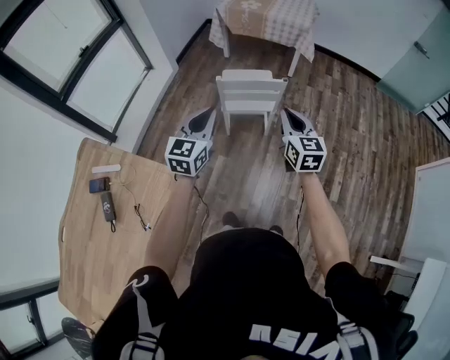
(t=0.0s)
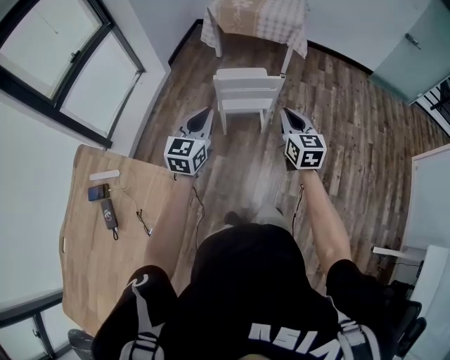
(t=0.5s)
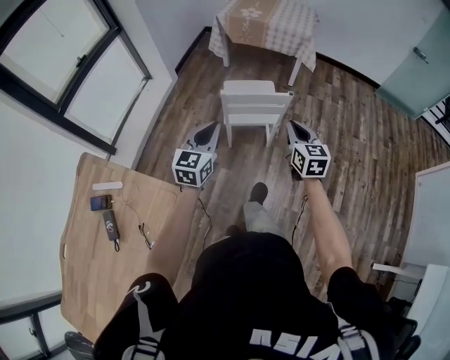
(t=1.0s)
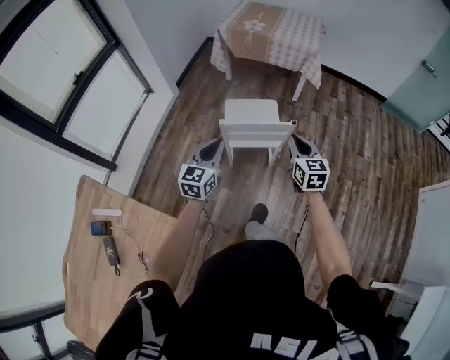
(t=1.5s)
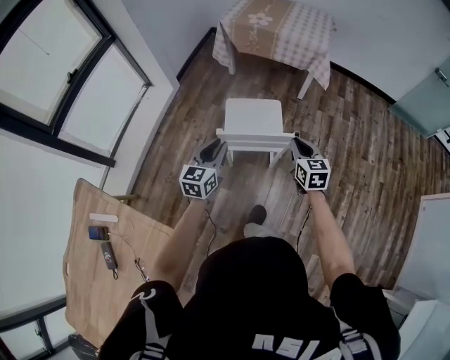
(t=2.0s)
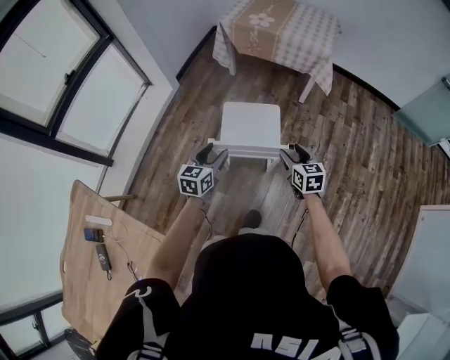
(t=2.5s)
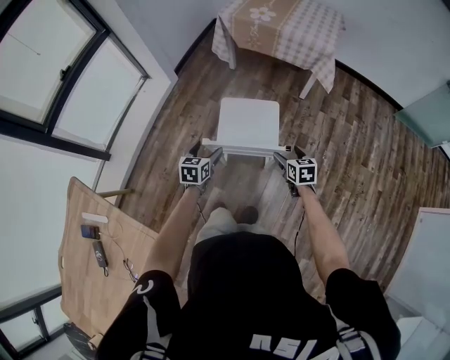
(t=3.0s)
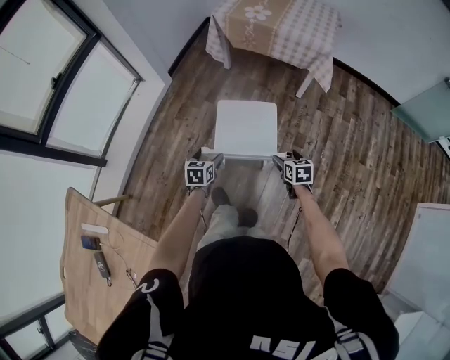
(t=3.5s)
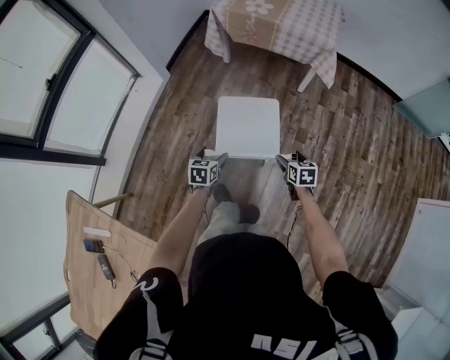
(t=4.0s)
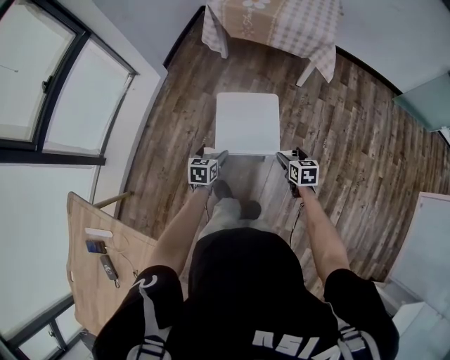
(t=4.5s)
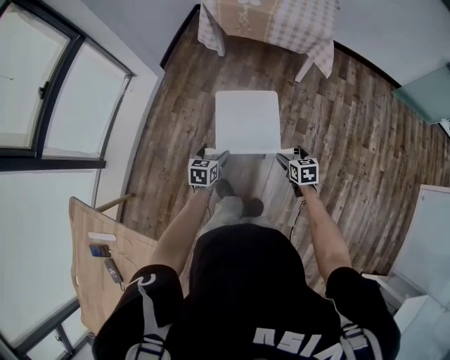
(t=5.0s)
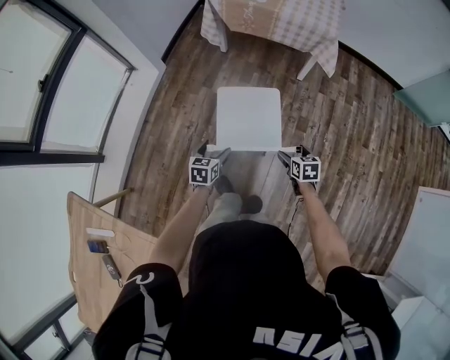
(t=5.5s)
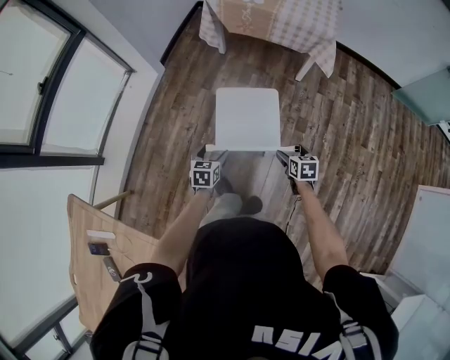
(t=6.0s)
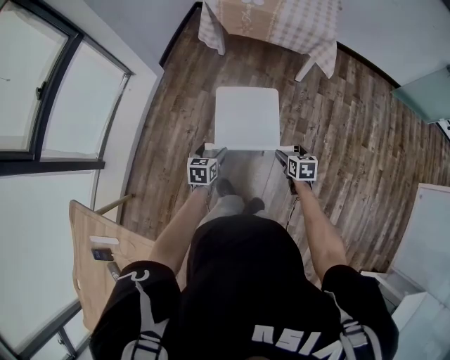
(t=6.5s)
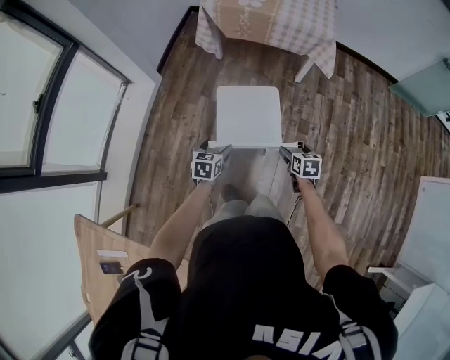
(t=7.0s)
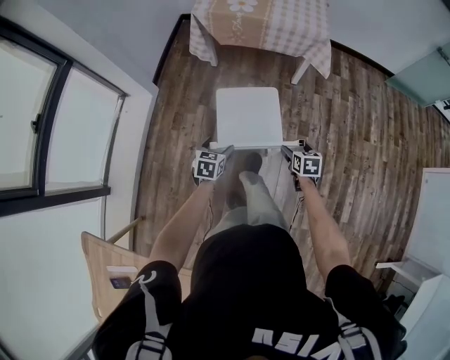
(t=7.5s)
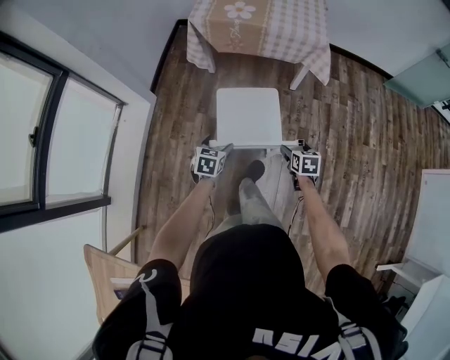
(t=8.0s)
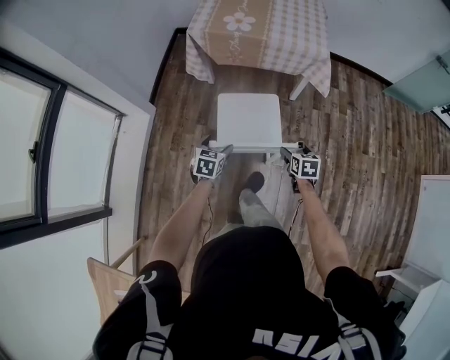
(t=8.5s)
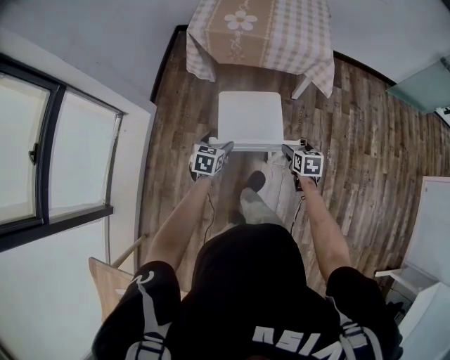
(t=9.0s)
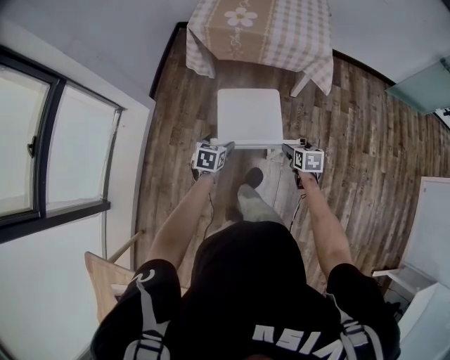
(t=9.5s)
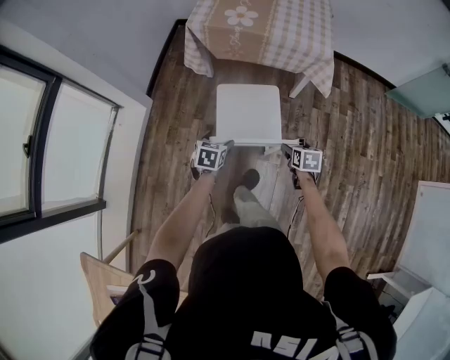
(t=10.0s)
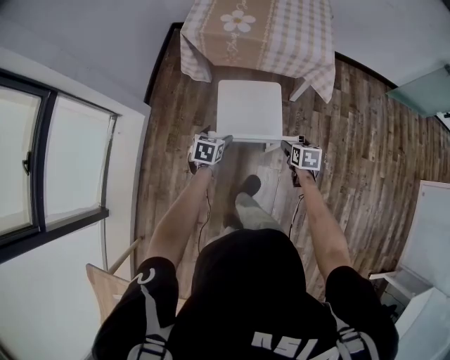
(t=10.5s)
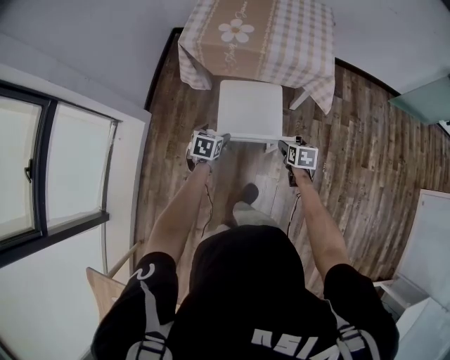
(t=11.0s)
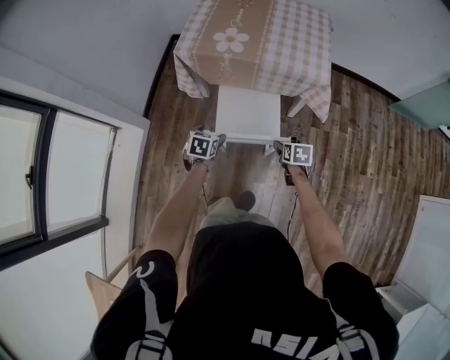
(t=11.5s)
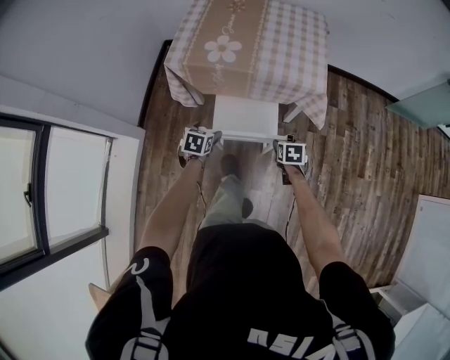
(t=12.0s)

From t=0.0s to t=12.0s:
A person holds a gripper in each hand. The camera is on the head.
From t=0.0s to t=2.0s: The two grippers go approximately 30 cm forward and downward.
From t=2.0s to t=4.0s: The two grippers go roughly 20 cm downward and forward. The right gripper rotates about 30 degrees, and opens, while the left gripper points its fingers roughly 30 degrees further downward, and opens.
From t=4.0s to t=6.0s: The grippers stay close to where they were, moving slightly.
From t=6.0s to t=8.0s: Both grippers travel together forward, roughly 15 cm.
From t=8.0s to t=10.0s: Both grippers move forward, roughly 10 cm.
From t=10.0s to t=12.0s: The two grippers go some 25 cm forward.

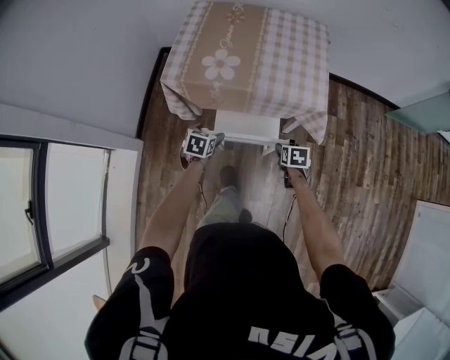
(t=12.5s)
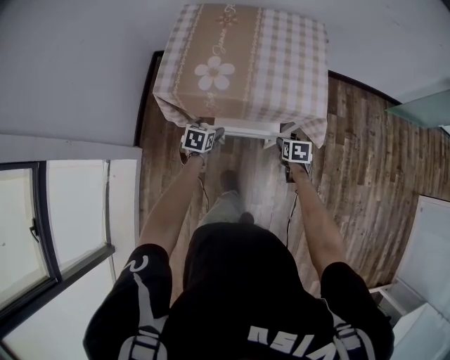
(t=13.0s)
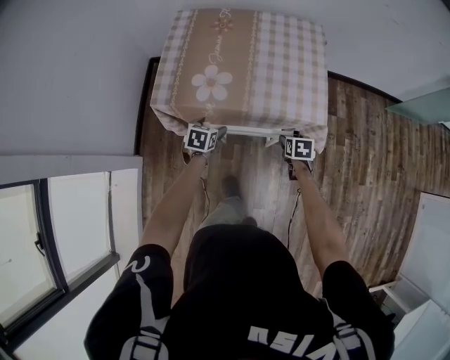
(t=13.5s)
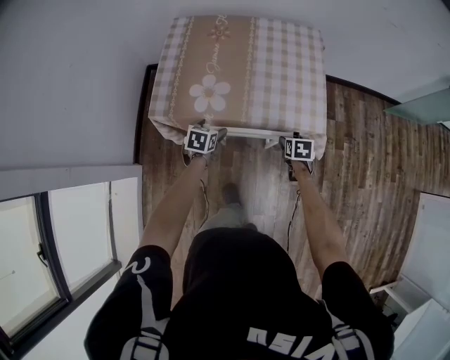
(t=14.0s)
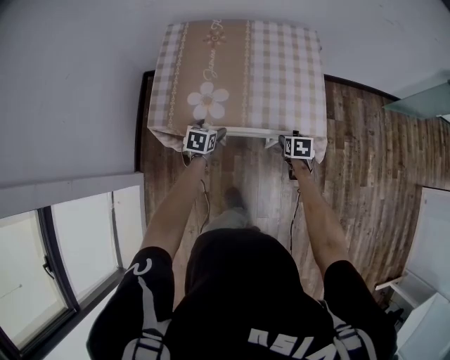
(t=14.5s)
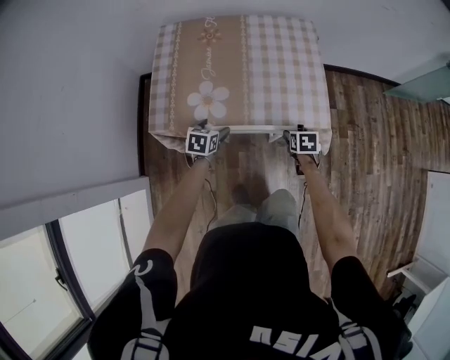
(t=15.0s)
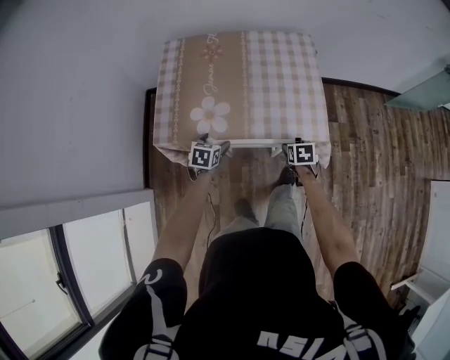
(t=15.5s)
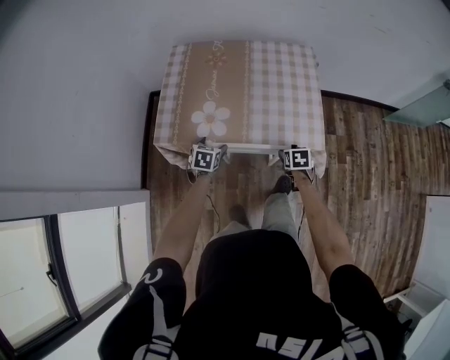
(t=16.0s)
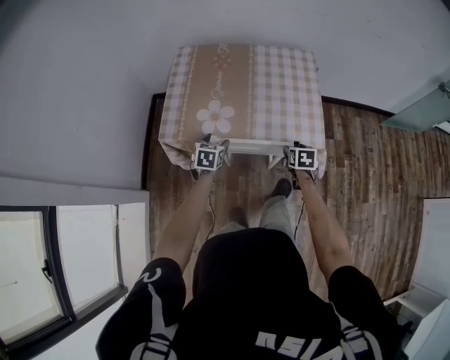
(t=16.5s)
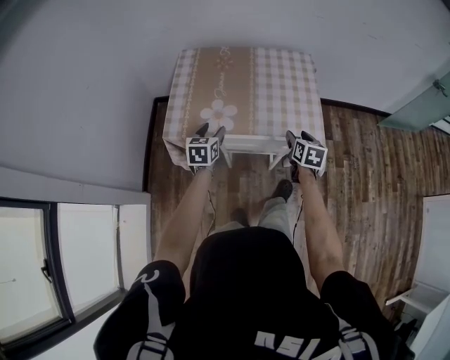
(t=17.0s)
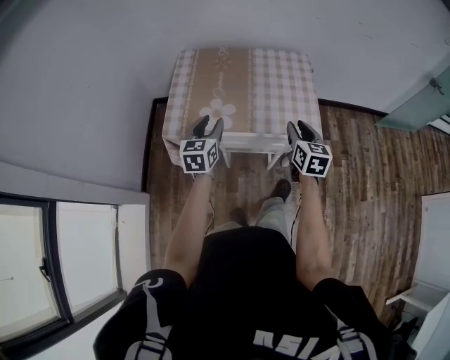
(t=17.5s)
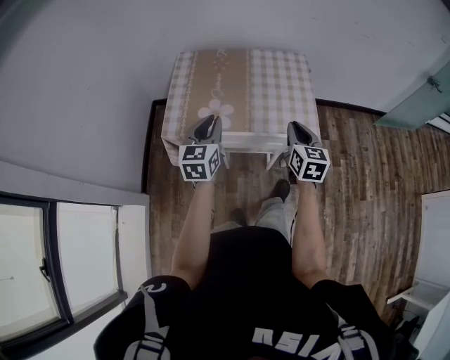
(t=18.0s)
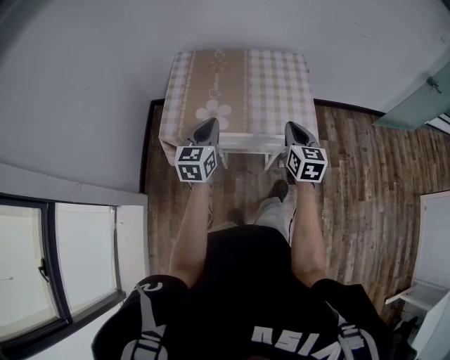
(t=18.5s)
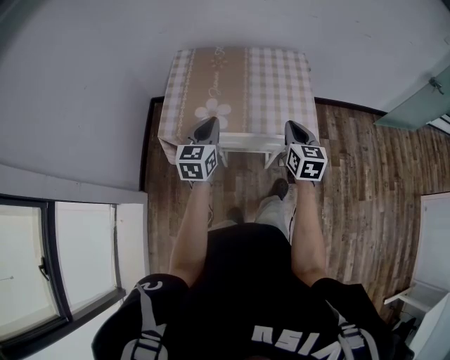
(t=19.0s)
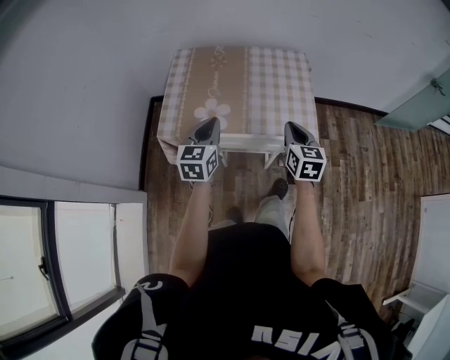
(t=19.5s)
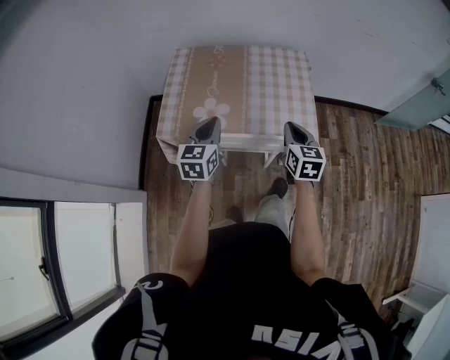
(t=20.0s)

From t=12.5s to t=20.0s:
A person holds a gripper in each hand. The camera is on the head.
From t=12.5s to t=14.5s: Both grippers travel together forward, some 20 cm.
From t=14.5s to t=16.5s: The left gripper moves roughly 5 cm.
From t=16.5s to t=18.0s: Both grippers travel together upward, approximately 25 cm. The right gripper tips its fingers upward by approximately 40 degrees, and closes up. The left gripper tips its fingers upward by about 30 degrees, and closes.
From t=18.0s to t=20.0s: The grippers make only small movements.

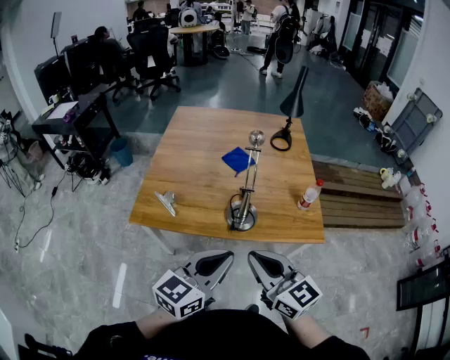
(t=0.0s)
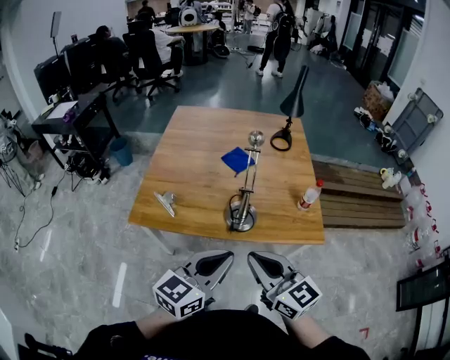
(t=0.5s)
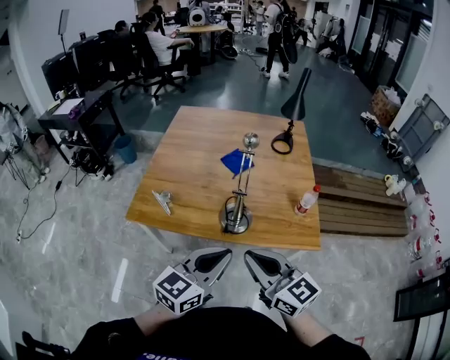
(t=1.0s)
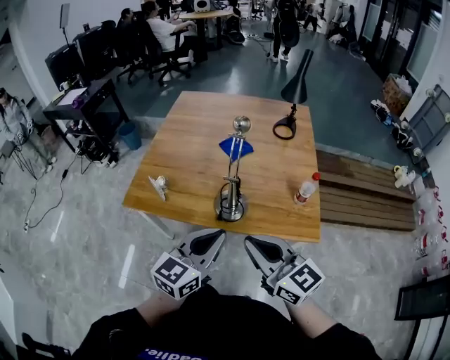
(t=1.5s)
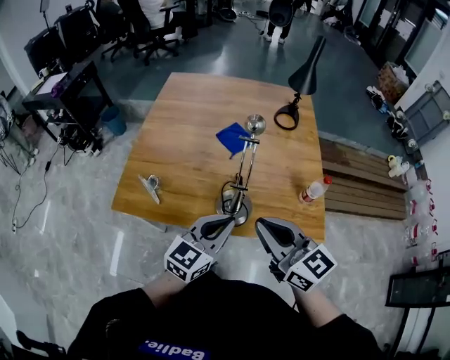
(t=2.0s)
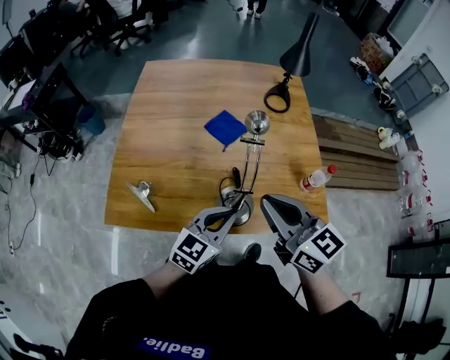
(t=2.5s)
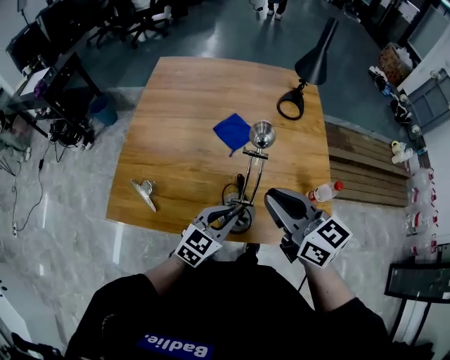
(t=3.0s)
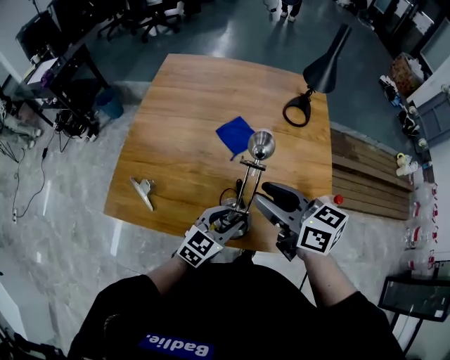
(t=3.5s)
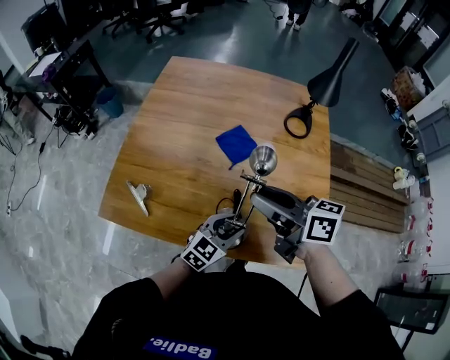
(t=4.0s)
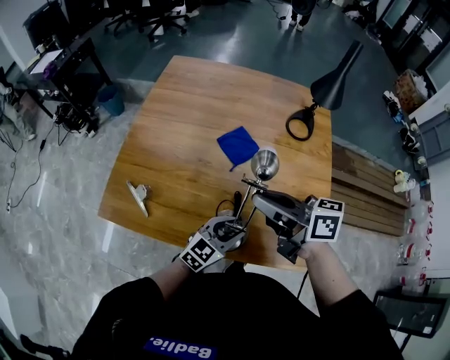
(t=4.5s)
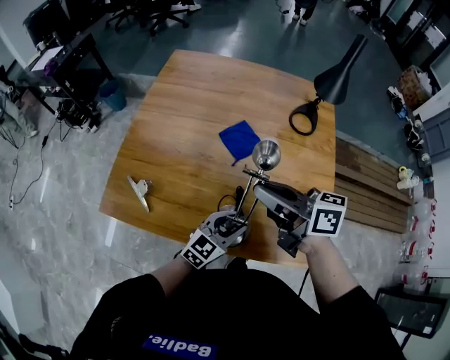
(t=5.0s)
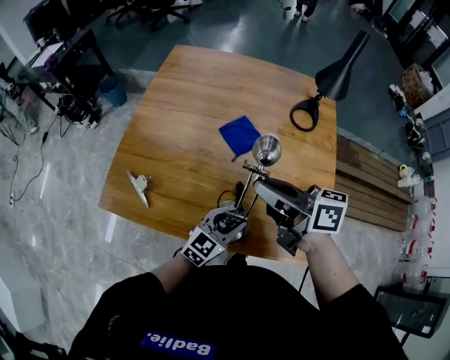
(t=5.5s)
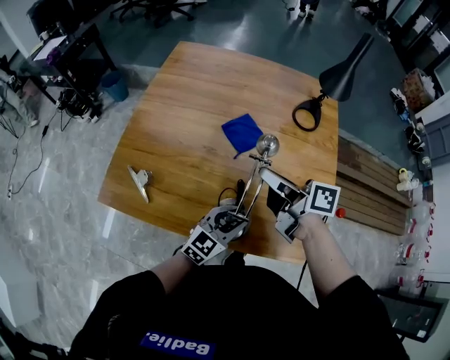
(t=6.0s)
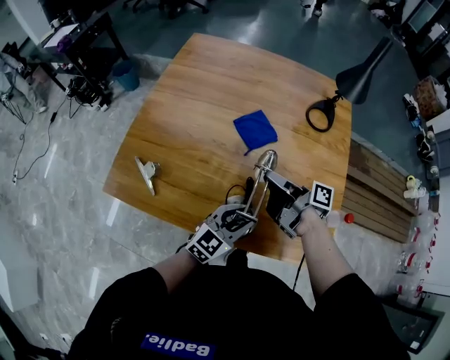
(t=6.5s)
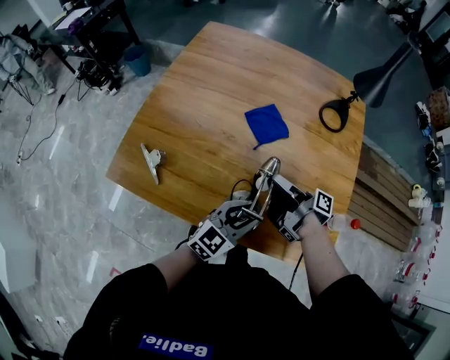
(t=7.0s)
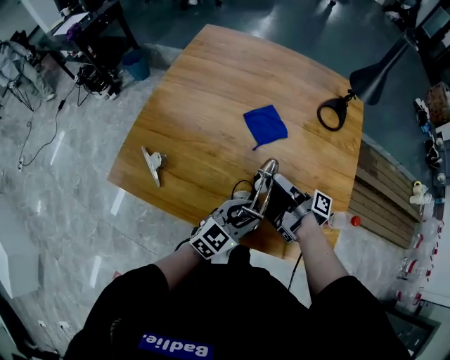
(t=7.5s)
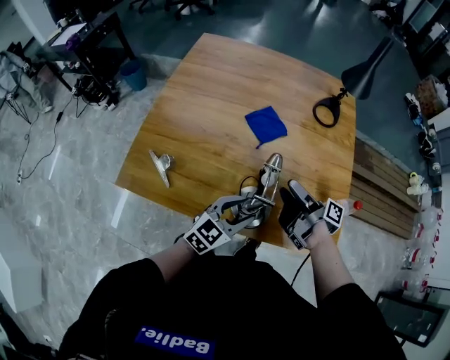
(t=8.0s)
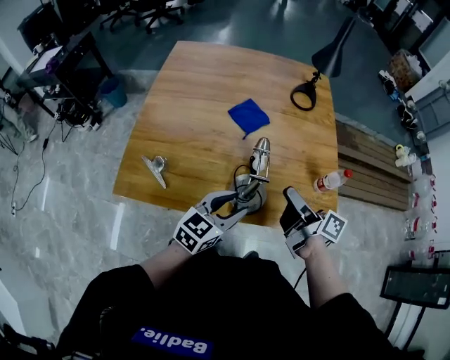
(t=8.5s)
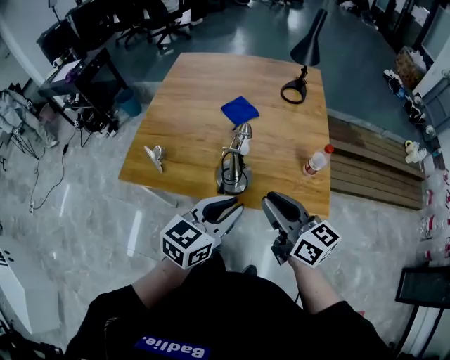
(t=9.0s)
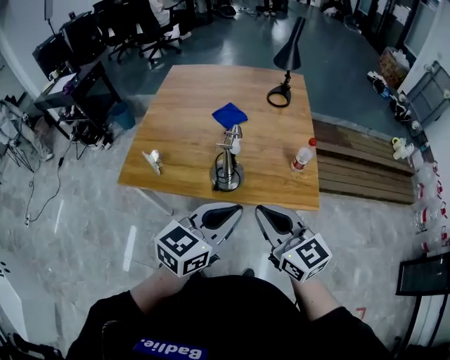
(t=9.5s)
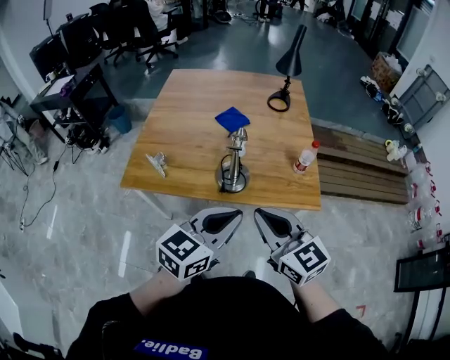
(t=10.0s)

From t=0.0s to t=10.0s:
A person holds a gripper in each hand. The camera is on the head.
From t=0.0s to t=2.0s: The right gripper travels forward by approximately 15 cm. The left gripper moves forward and downward, roughly 20 cm.
From t=2.0s to t=4.0s: The right gripper moves forward, roughly 20 cm, rotates roughly 40 degrees, and opens up. Meanwhile the left gripper heads downward and forward, covering roughly 20 cm, and opens.
From t=4.0s to t=6.0s: The right gripper moves downward, about 5 cm, and closes up.
From t=6.0s to t=8.0s: The right gripper heads downward and backward, covering about 10 cm, rotates about 40 degrees, and opens up. The left gripper shifts by about 5 cm.
From t=8.0s to t=10.0s: The grippers both shift backward and upward by approximately 35 cm. The left gripper closes up. The right gripper rolls counterclockwise, seen from behind, by about 90 degrees, and closes up.
